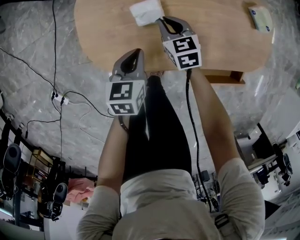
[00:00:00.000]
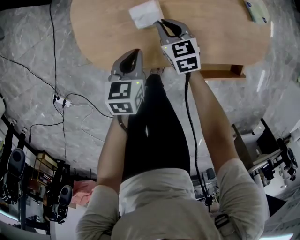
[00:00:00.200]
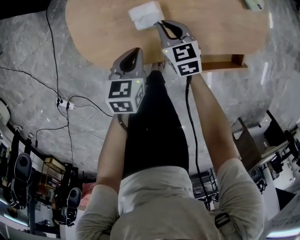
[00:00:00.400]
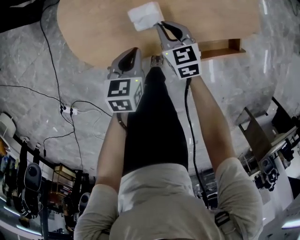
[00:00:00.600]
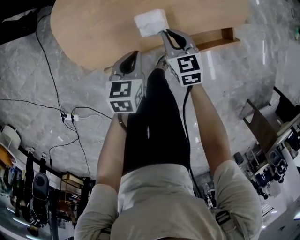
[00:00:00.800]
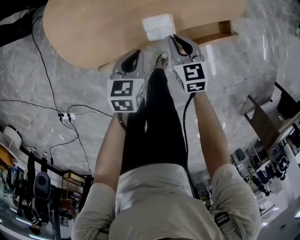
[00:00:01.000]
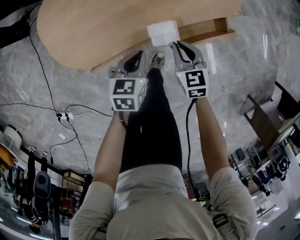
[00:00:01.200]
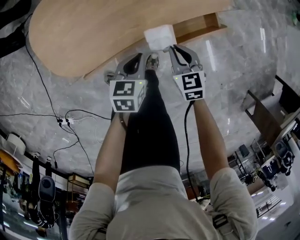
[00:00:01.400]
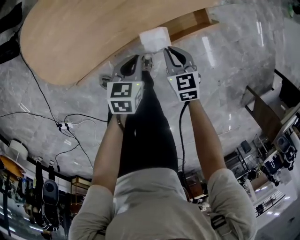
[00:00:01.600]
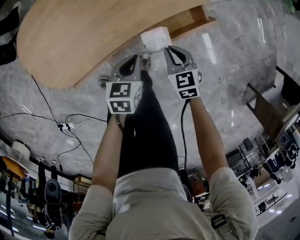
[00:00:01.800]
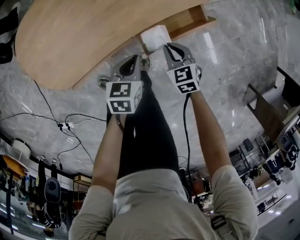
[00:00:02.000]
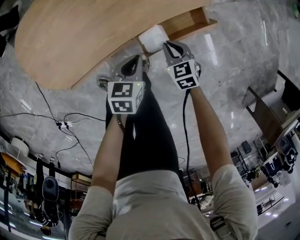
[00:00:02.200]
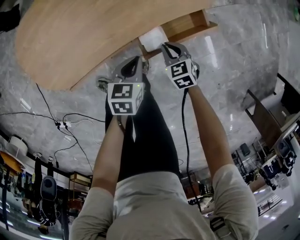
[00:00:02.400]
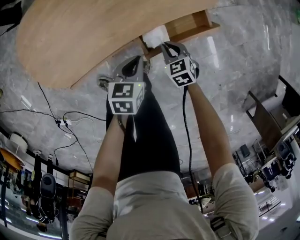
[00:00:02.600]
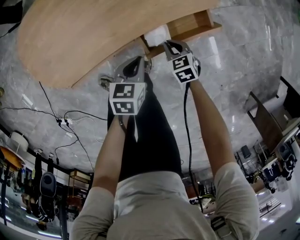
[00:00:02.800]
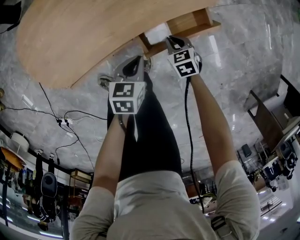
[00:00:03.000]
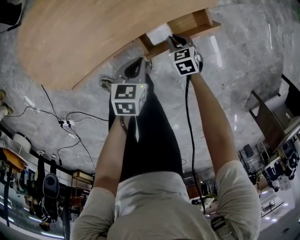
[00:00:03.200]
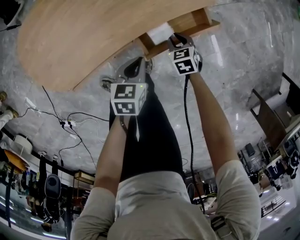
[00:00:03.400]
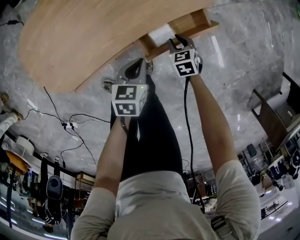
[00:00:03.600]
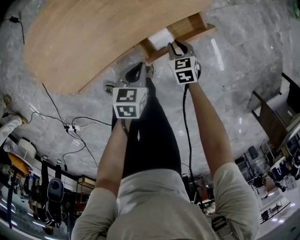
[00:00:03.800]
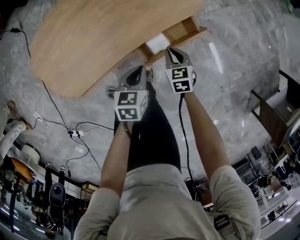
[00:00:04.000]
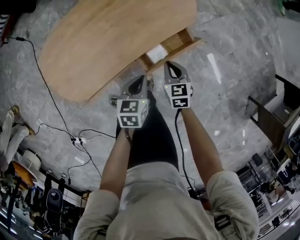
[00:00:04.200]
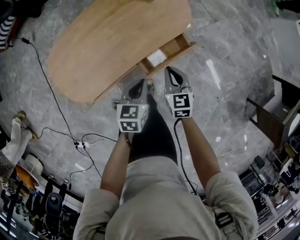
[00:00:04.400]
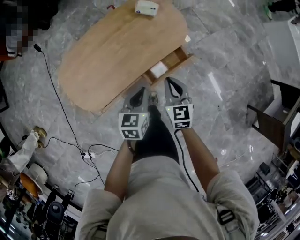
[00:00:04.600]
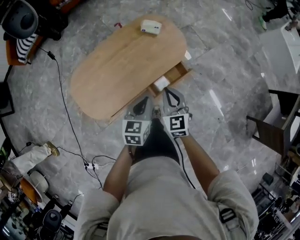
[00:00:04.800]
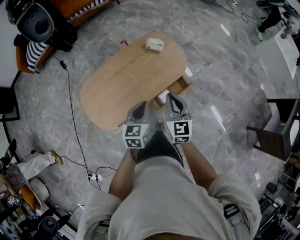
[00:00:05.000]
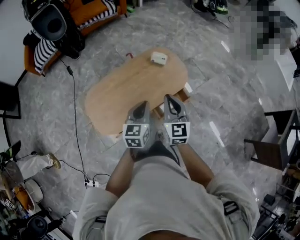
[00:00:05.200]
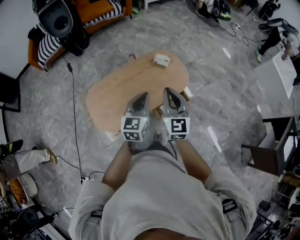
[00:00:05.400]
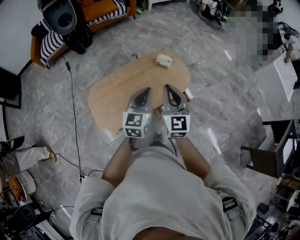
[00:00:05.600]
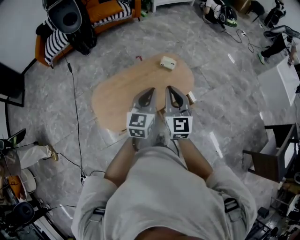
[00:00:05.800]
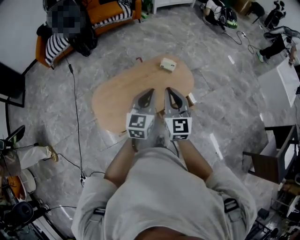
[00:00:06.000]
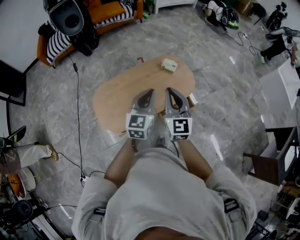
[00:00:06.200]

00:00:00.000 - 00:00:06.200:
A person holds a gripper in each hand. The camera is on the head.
00:00:00.000 - 00:00:01.600: The left gripper changes place by some 25 cm, and changes its angle by some 30 degrees. The right gripper moves approximately 40 cm, and rotates roughly 30 degrees.
00:00:01.600 - 00:00:03.200: The right gripper goes approximately 15 cm downward and to the right. Meanwhile the left gripper moves to the right, approximately 5 cm.
00:00:03.200 - 00:00:04.600: The two grippers go about 30 cm upward. The right gripper tips its fingers upward by about 30 degrees.
00:00:04.600 - 00:00:06.200: The left gripper shifts roughly 25 cm upward, and changes its angle by approximately 30 degrees. The right gripper travels upward and to the left by some 30 cm, and rotates roughly 30 degrees.

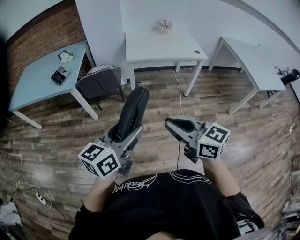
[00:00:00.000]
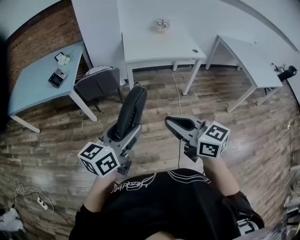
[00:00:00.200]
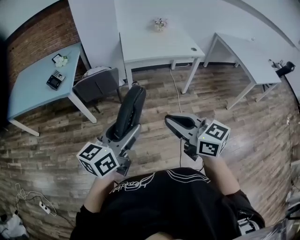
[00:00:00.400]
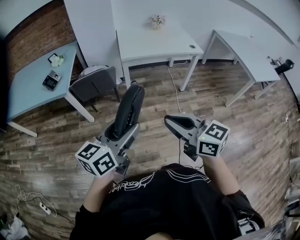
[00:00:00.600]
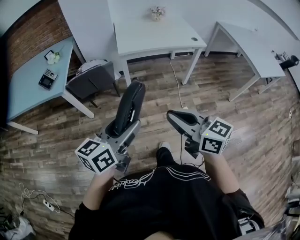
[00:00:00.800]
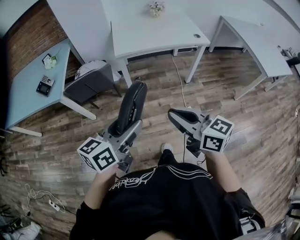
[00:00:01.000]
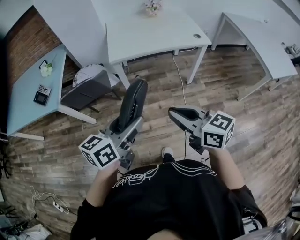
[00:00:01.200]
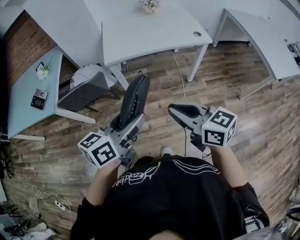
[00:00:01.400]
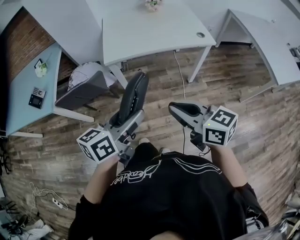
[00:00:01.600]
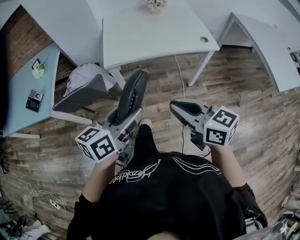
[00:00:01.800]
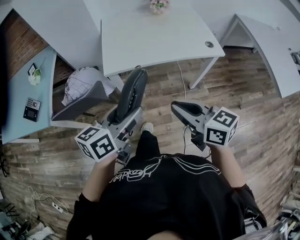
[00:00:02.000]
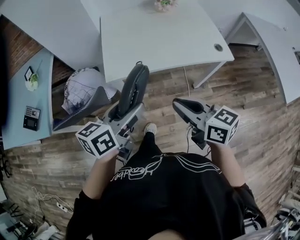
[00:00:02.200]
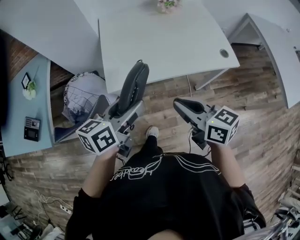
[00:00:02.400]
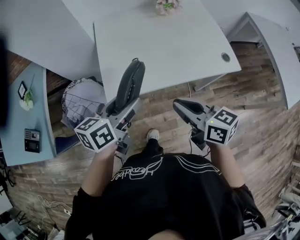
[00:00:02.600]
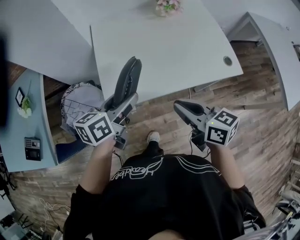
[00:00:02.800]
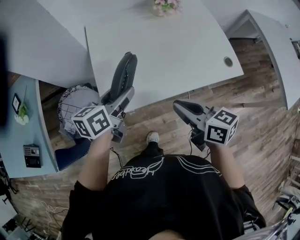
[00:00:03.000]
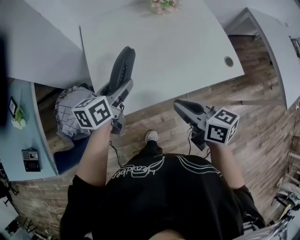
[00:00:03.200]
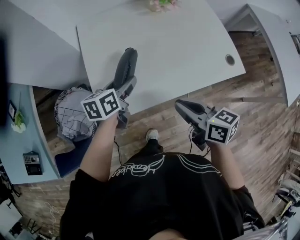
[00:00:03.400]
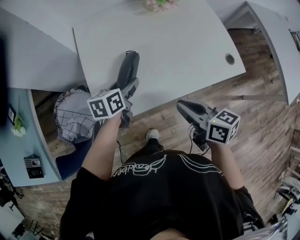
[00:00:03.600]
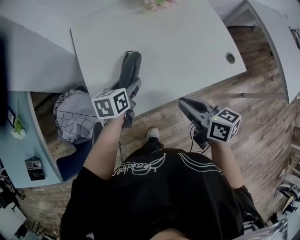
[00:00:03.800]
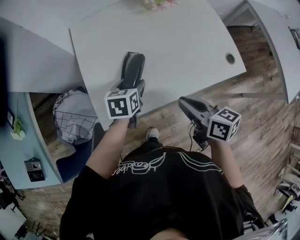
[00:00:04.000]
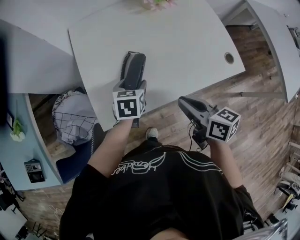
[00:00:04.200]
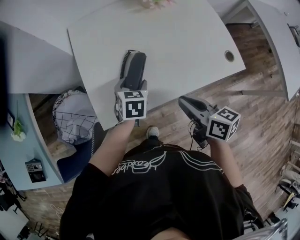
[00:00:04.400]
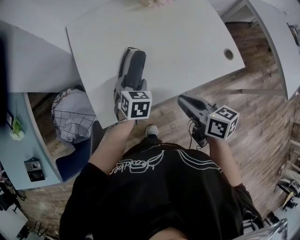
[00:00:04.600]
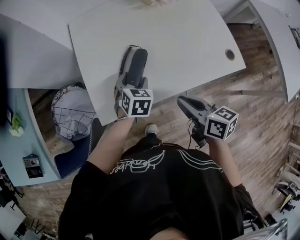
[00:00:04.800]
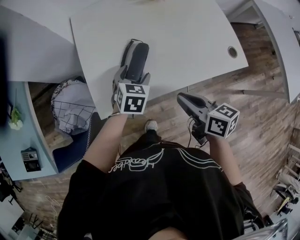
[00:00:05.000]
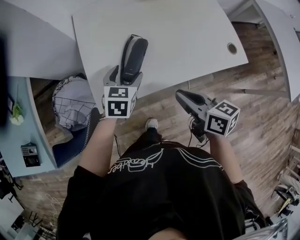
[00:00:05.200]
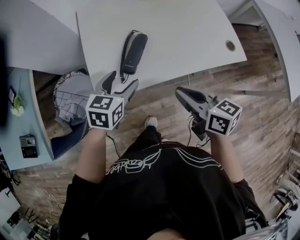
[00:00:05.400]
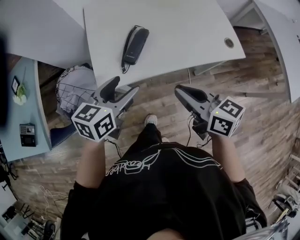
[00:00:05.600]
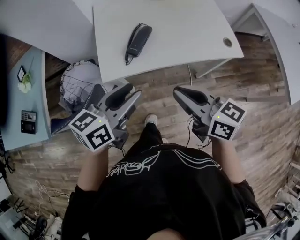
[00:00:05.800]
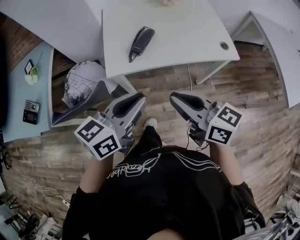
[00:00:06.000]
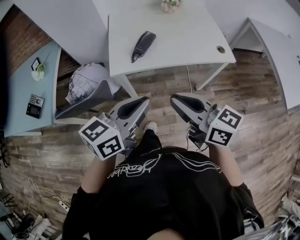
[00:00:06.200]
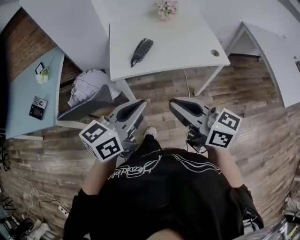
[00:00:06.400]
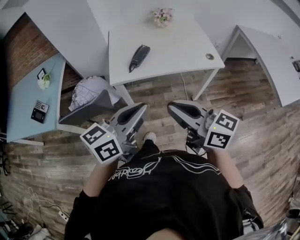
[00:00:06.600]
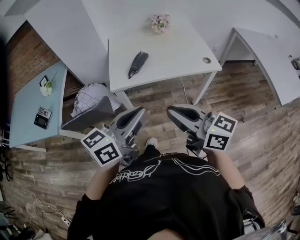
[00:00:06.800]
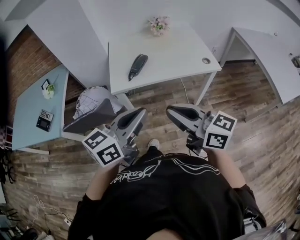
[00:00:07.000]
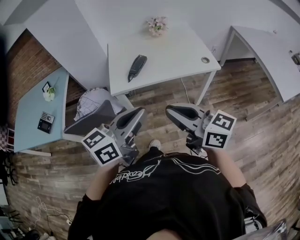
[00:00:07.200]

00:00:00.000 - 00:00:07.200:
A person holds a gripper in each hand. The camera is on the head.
00:00:00.000 - 00:00:01.400: The two grippers go roughly 30 cm forward and to the right.
00:00:01.400 - 00:00:02.800: The two grippers travel together, forward, some 40 cm.
00:00:02.800 - 00:00:04.400: The left gripper goes roughly 20 cm downward, forward and to the right, and points its fingers approximately 30 degrees further downward; the right gripper goes some 10 cm downward and forward.
00:00:04.400 - 00:00:05.800: The left gripper heads backward and upward, covering approximately 30 cm, and angles its fingers upward, by about 30 degrees. The right gripper travels backward and upward by roughly 20 cm, and rotates some 30 degrees.
00:00:05.800 - 00:00:07.200: The grippers both shift backward and upward by approximately 20 cm. The left gripper closes.

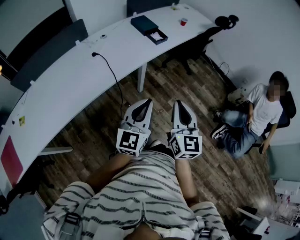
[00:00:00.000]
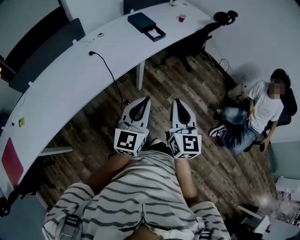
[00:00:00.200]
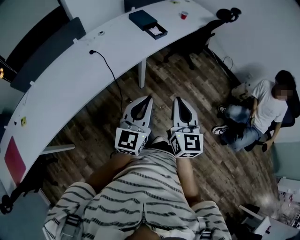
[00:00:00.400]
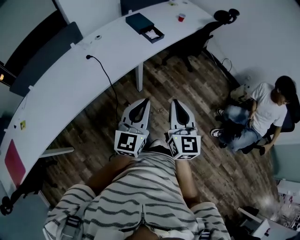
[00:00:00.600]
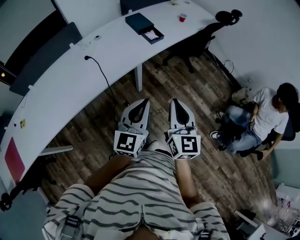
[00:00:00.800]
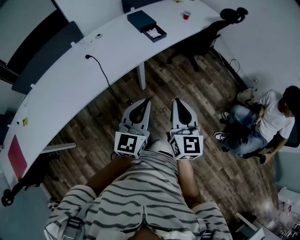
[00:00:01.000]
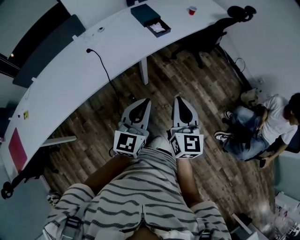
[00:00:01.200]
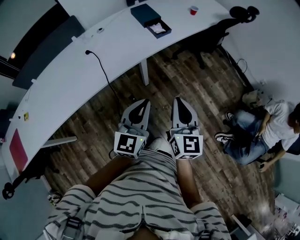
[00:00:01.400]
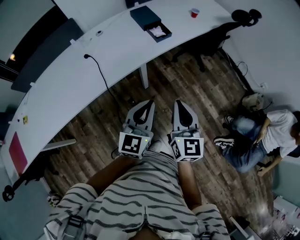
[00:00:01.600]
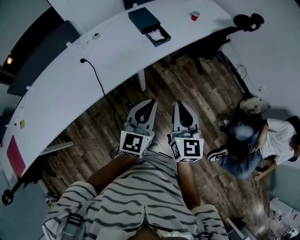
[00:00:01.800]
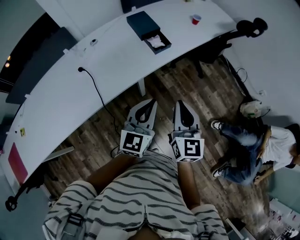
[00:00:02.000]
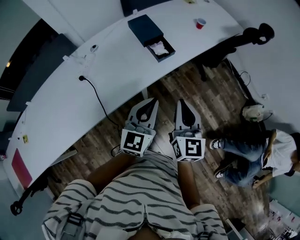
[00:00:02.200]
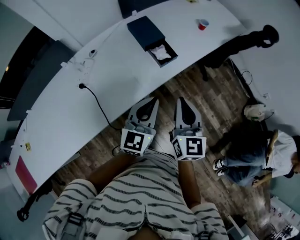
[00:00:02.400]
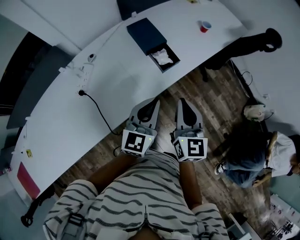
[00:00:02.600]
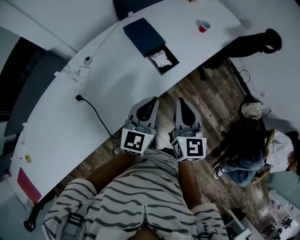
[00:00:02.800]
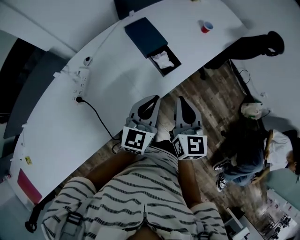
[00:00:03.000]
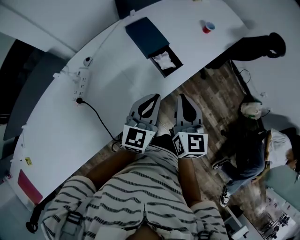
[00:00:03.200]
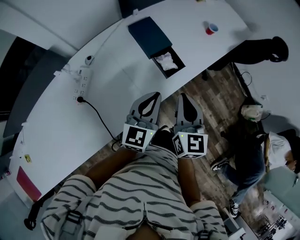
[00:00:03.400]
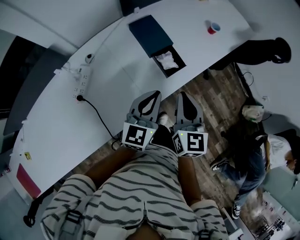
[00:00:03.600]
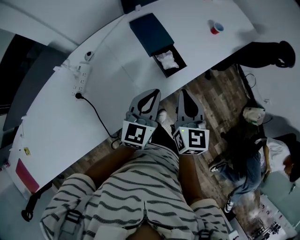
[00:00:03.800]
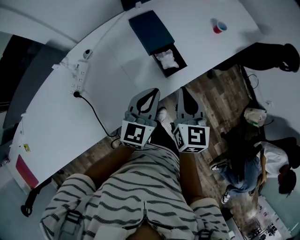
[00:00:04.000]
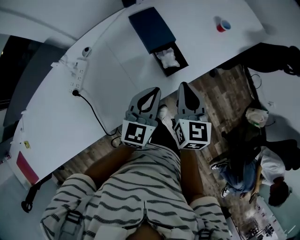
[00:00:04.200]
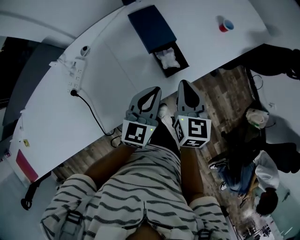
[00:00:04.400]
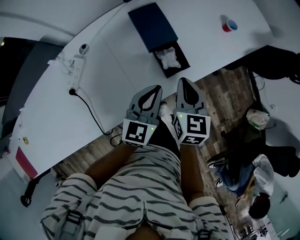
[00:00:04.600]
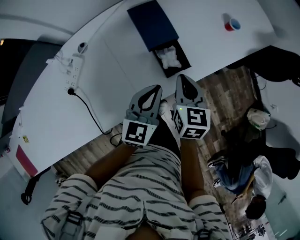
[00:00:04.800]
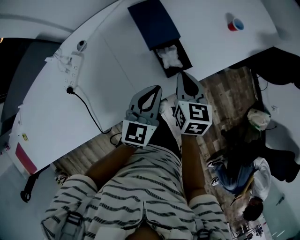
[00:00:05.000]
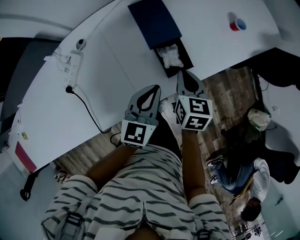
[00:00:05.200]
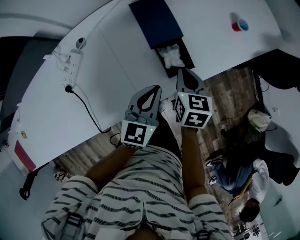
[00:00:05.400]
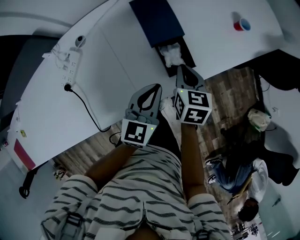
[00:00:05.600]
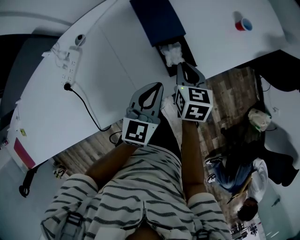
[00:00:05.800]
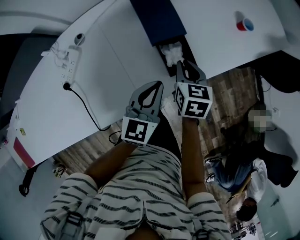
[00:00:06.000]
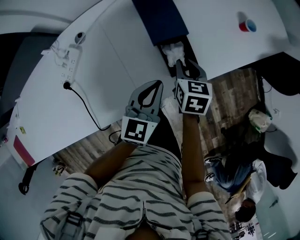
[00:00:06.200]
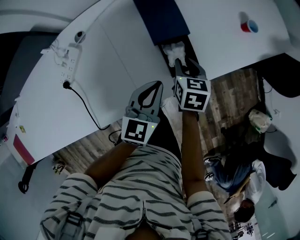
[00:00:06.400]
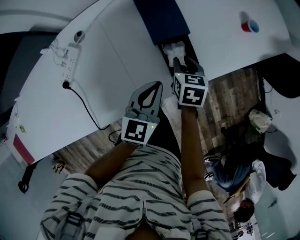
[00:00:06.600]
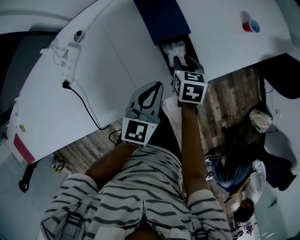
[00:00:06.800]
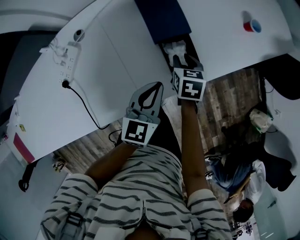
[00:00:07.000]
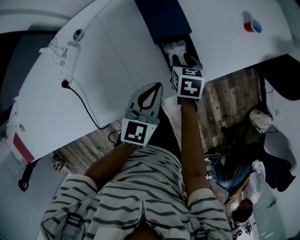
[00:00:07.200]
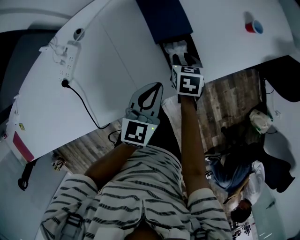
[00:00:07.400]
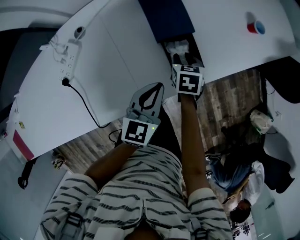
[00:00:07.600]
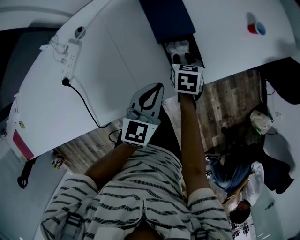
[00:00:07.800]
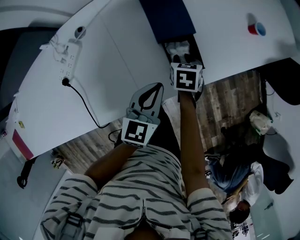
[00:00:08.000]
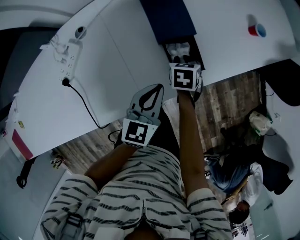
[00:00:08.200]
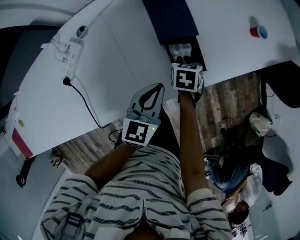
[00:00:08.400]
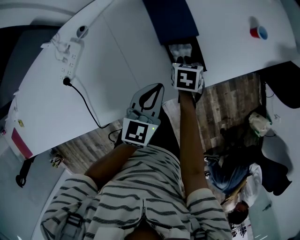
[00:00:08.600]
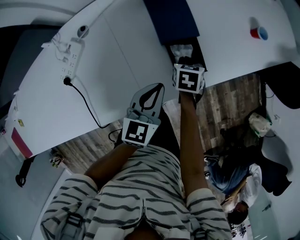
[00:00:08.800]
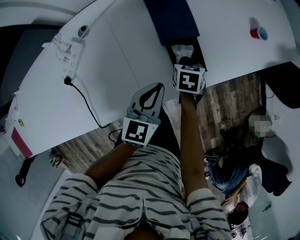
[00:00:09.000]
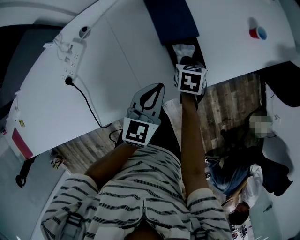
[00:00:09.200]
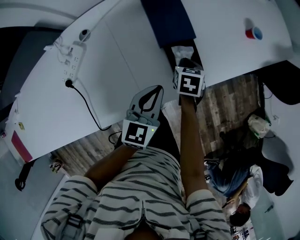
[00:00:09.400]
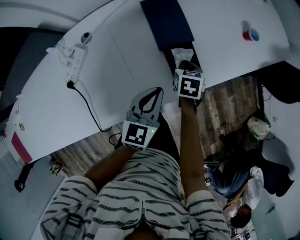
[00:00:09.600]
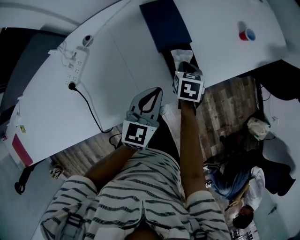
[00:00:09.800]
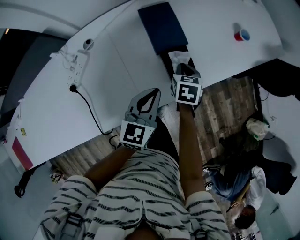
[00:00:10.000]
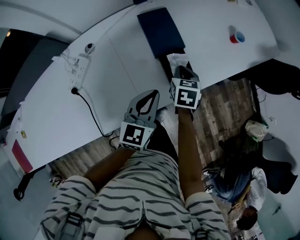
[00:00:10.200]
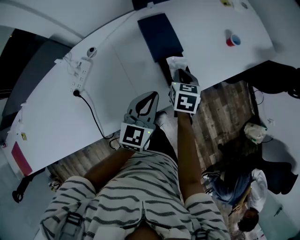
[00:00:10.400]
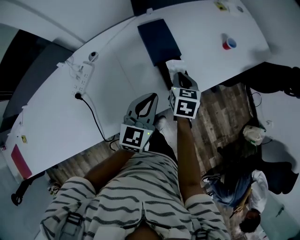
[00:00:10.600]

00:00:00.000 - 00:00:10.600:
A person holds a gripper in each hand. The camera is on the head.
00:00:00.000 - 00:00:01.600: The grippers both shift forward and to the right by approximately 20 cm.
00:00:01.600 - 00:00:03.000: Both grippers move forward, approximately 35 cm.
00:00:03.000 - 00:00:04.600: Both grippers move forward and downward, approximately 15 cm.
00:00:04.600 - 00:00:06.000: The left gripper ends up approximately 5 cm from where it was, while the right gripper is displaced downward and forward by approximately 15 cm.
00:00:06.000 - 00:00:07.600: The right gripper heads downward, covering some 10 cm, and opens up.
00:00:07.600 - 00:00:09.000: The right gripper closes.
00:00:09.000 - 00:00:10.600: The left gripper is displaced upward by approximately 10 cm. The right gripper shifts some 15 cm upward, and rotates about 20 degrees.
